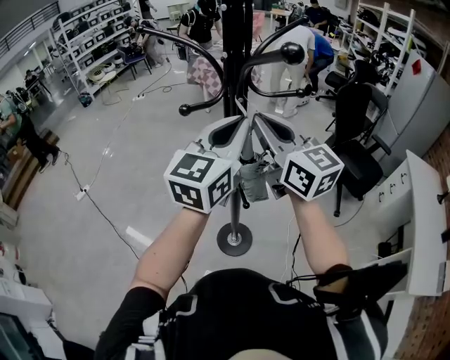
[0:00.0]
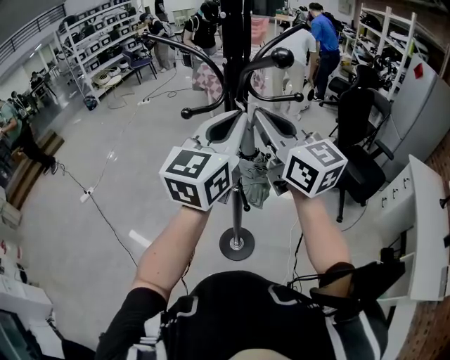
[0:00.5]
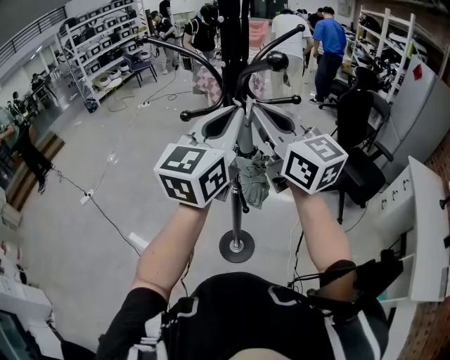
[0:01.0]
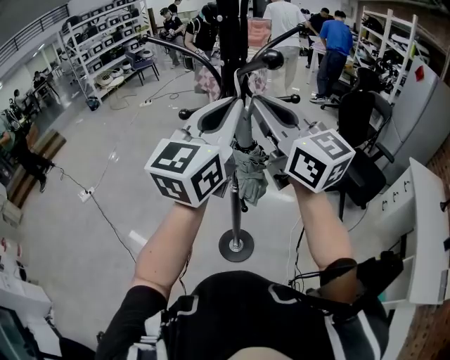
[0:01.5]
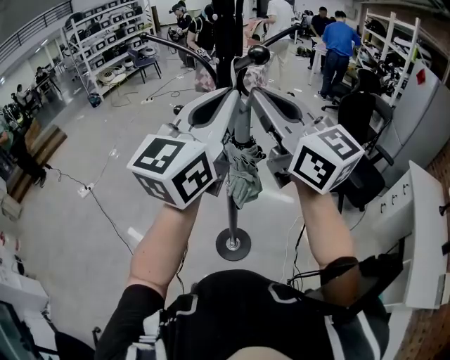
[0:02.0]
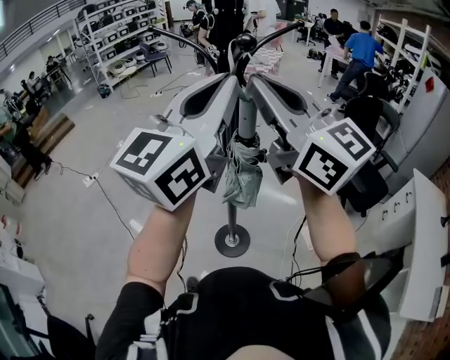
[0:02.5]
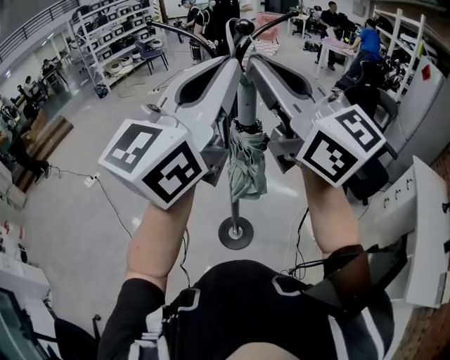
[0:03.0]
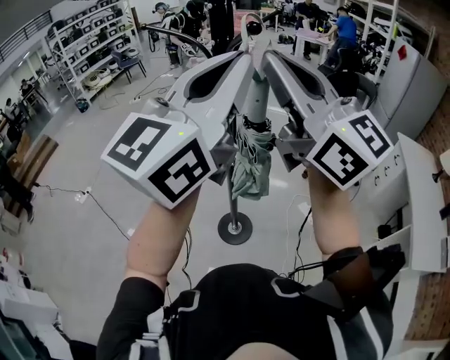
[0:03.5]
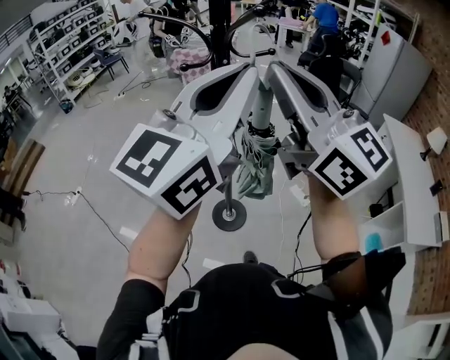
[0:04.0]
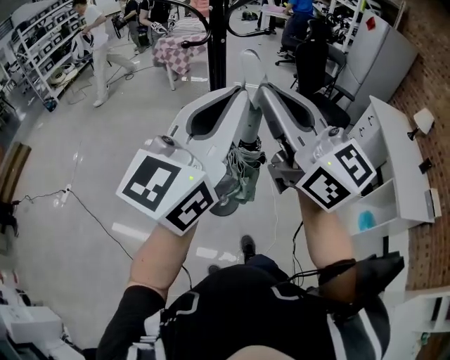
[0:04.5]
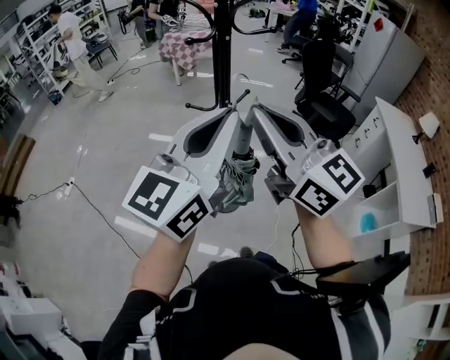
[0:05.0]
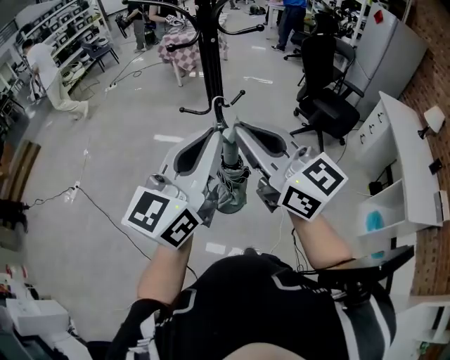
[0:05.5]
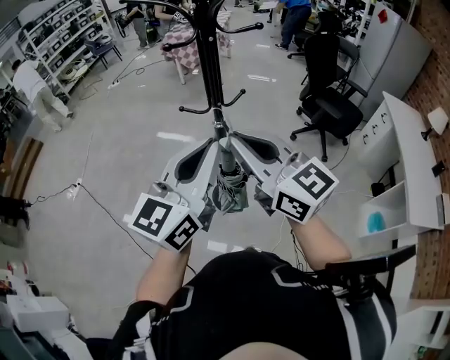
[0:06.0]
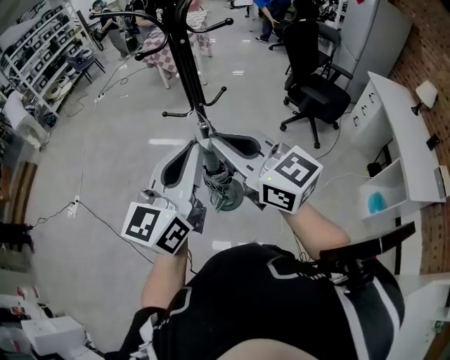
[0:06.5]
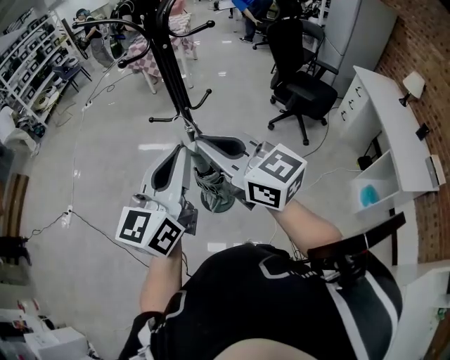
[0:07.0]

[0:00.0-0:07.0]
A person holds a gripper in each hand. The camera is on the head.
0:00.0 to 0:02.0: The right gripper moves upward and backward, about 10 cm; the left gripper moves upward, roughly 10 cm.
0:02.0 to 0:03.5: Both grippers travel together backward and upward, some 15 cm.
0:03.5 to 0:05.0: The two grippers go approximately 15 cm downward and backward.
0:05.0 to 0:07.0: The two grippers go about 10 cm downward.

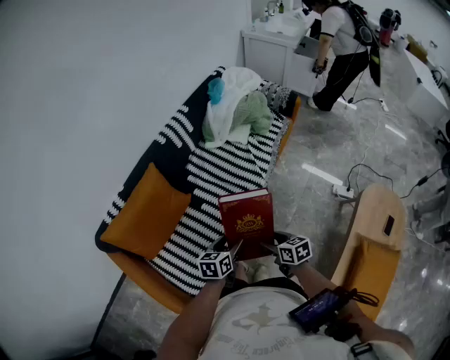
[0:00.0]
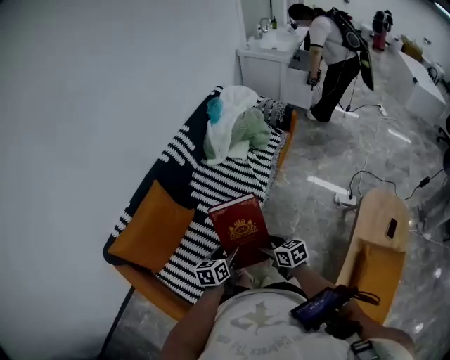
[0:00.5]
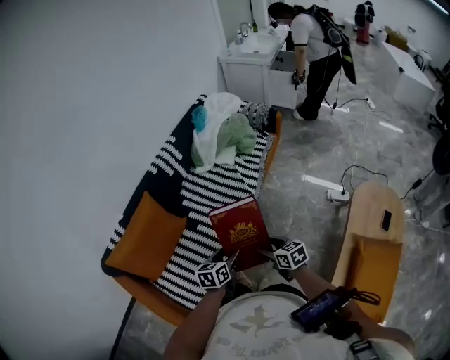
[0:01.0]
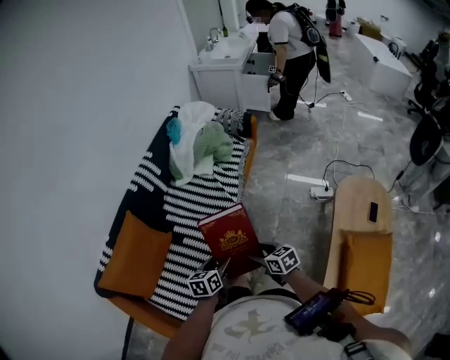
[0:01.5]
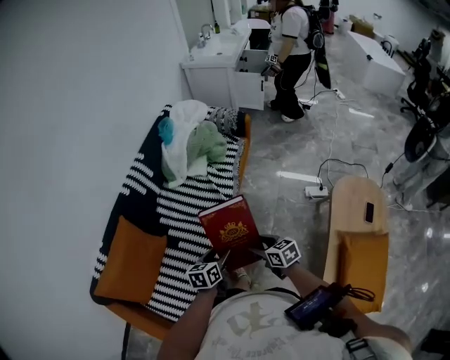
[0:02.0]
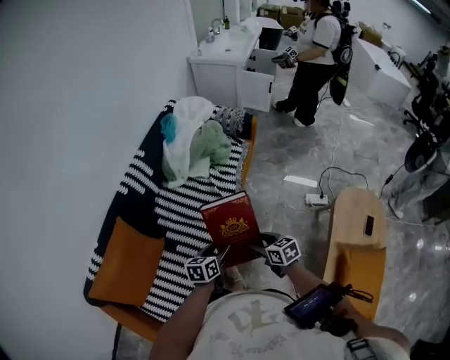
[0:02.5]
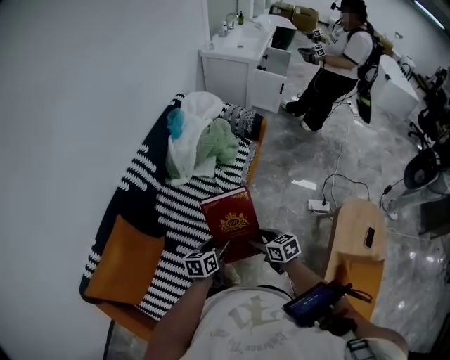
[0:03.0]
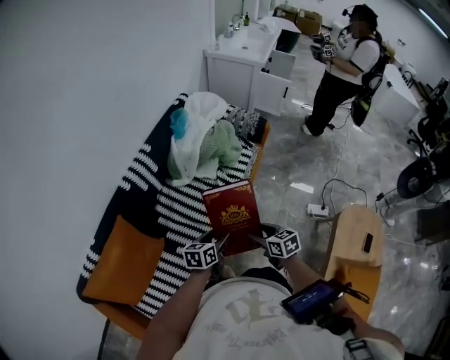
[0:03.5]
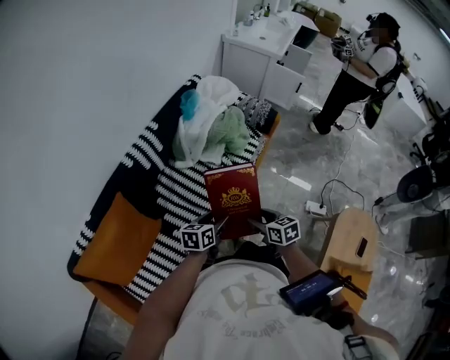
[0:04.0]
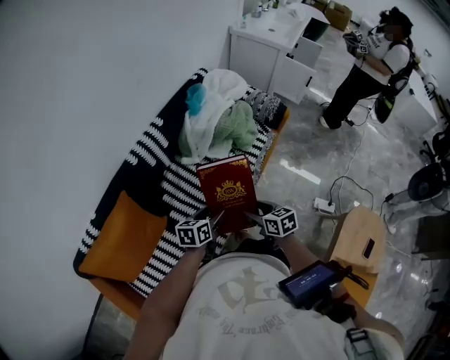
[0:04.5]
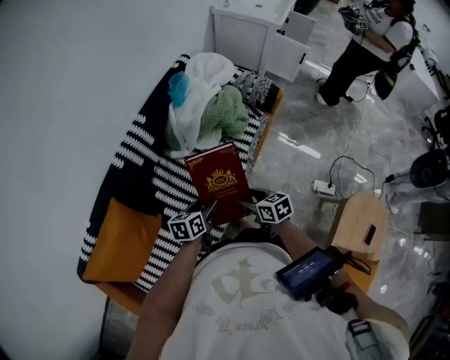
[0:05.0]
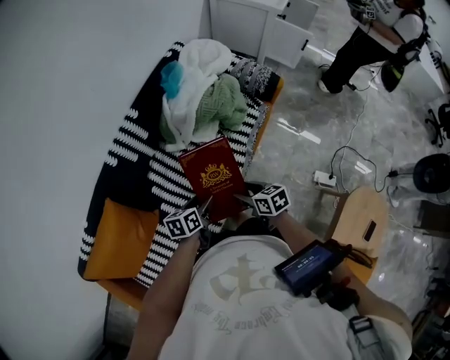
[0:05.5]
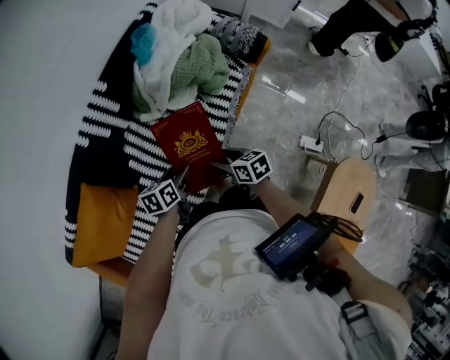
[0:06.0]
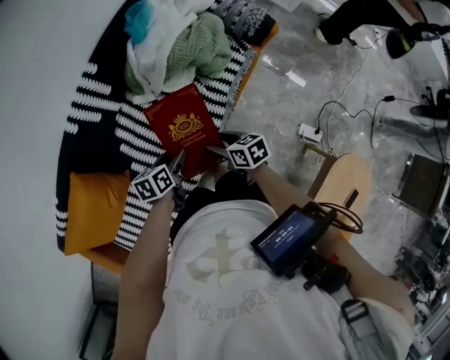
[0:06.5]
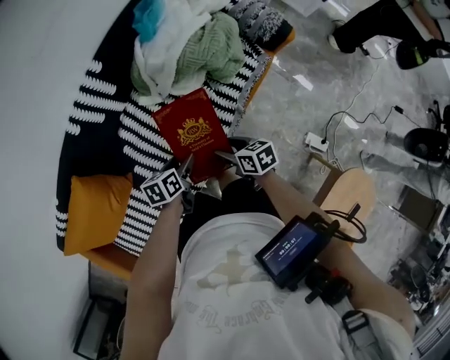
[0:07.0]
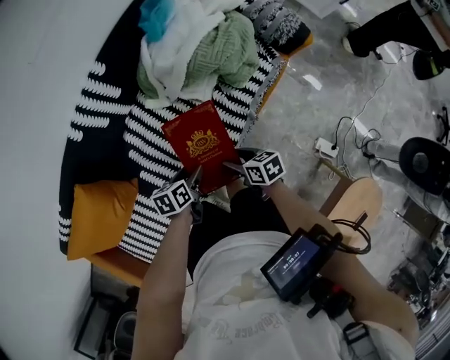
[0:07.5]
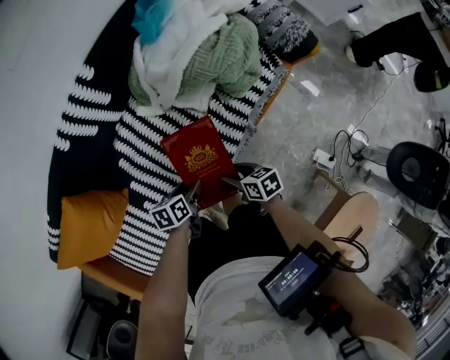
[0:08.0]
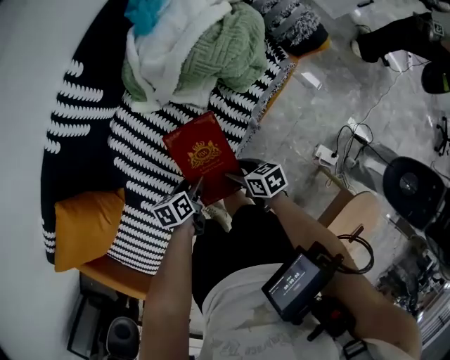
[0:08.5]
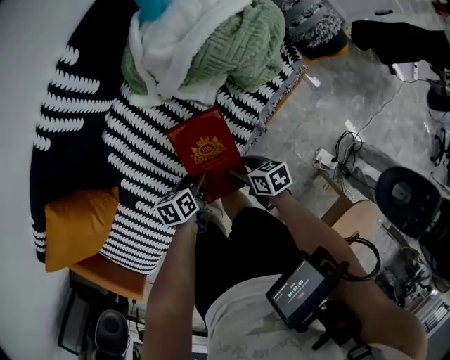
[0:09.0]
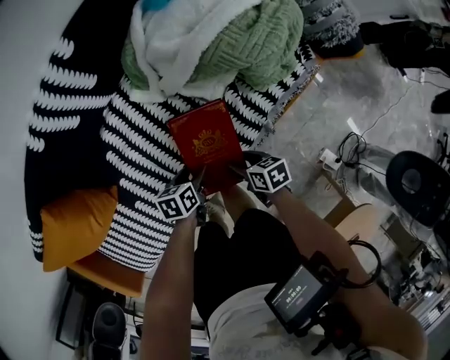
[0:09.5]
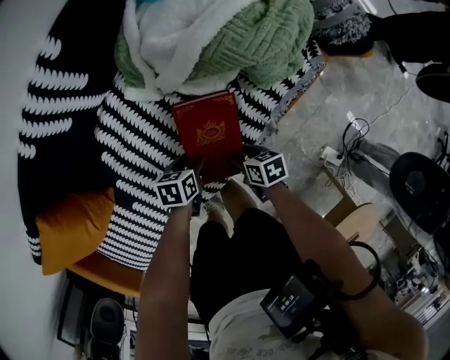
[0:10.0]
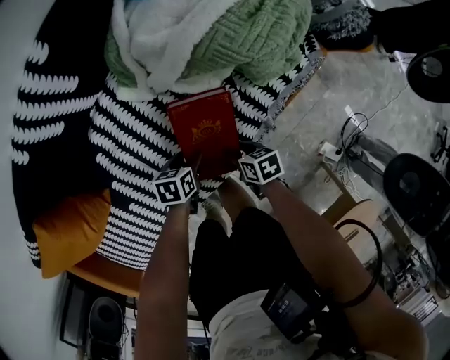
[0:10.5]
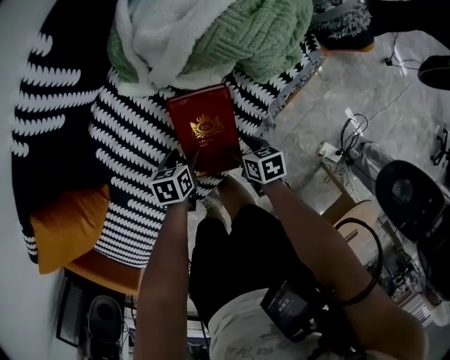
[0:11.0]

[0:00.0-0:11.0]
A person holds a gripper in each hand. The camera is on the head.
0:00.0 to 0:02.0: The two grippers go about 10 cm to the right.
0:02.0 to 0:03.5: The two grippers go some 15 cm forward.
0:03.5 to 0:05.5: The right gripper shifts approximately 15 cm forward; the left gripper goes about 15 cm forward and downward.
0:05.5 to 0:07.5: Both grippers move downward and forward, approximately 15 cm.
0:07.5 to 0:09.0: The two grippers go some 15 cm downward.
0:09.0 to 0:11.0: Both grippers travel together downward, some 10 cm.

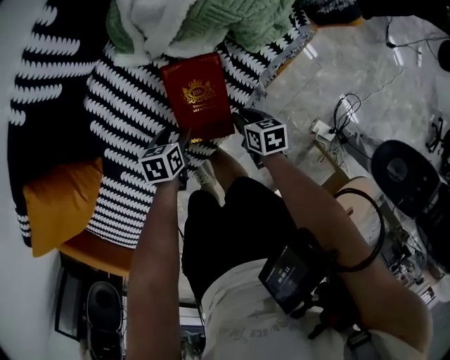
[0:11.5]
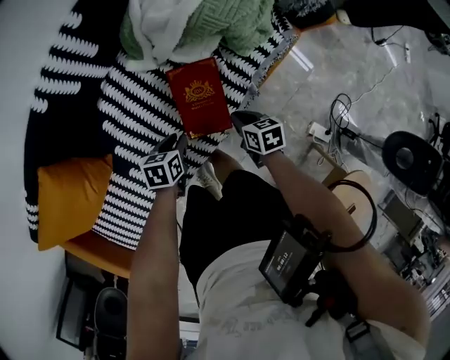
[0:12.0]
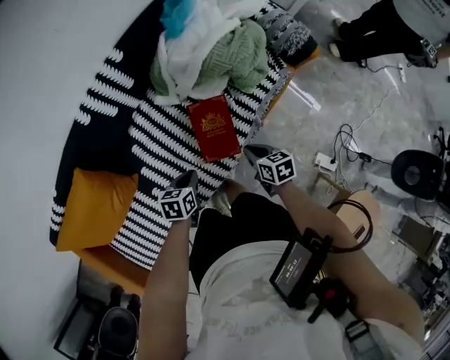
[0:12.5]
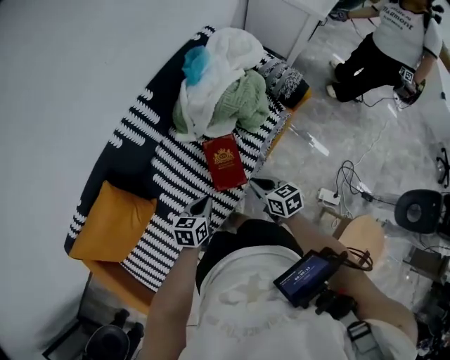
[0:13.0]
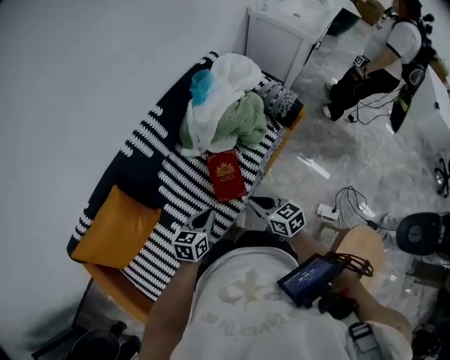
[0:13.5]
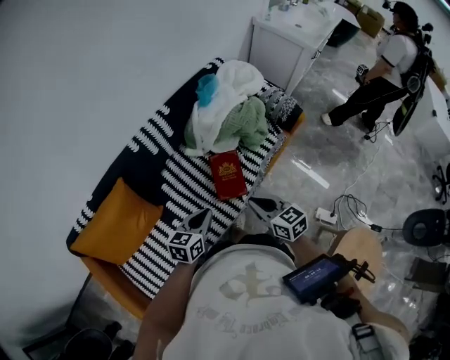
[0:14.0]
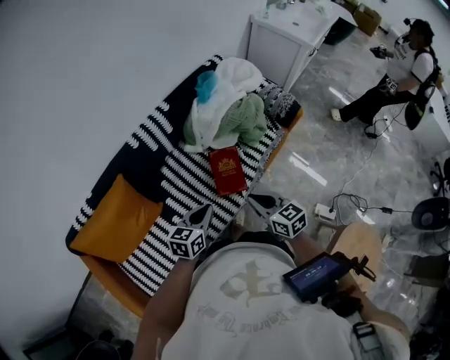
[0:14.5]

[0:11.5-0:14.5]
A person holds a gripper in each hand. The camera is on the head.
0:11.5 to 0:13.0: Both grippers travel together upward, approximately 30 cm. The right gripper swivels approximately 30 degrees, while the left gripper turns by about 30 degrees, and closes up.
0:13.0 to 0:14.5: The right gripper heads upward, backward and to the left, covering about 15 cm, while the left gripper travels upward and backward by approximately 15 cm.

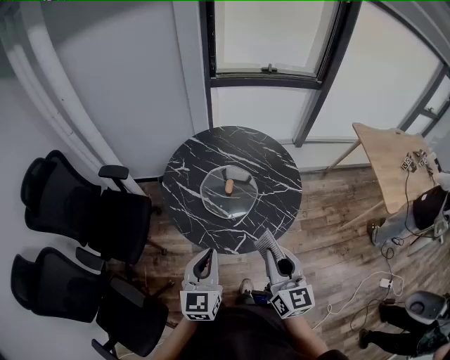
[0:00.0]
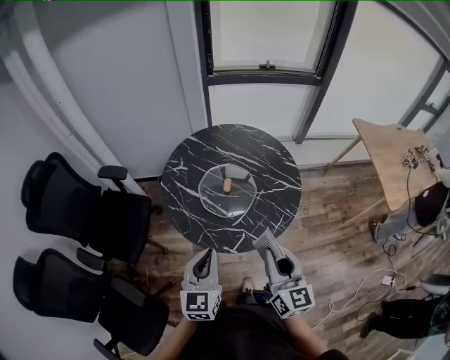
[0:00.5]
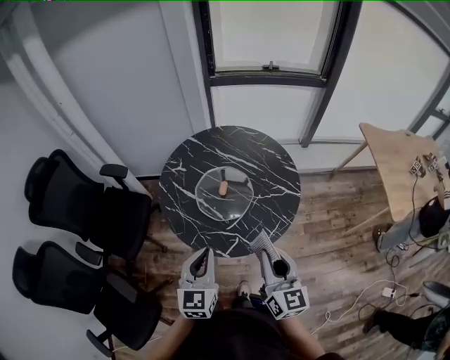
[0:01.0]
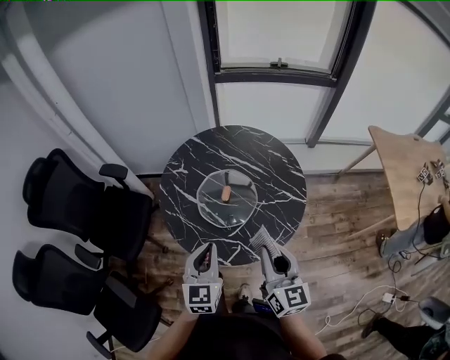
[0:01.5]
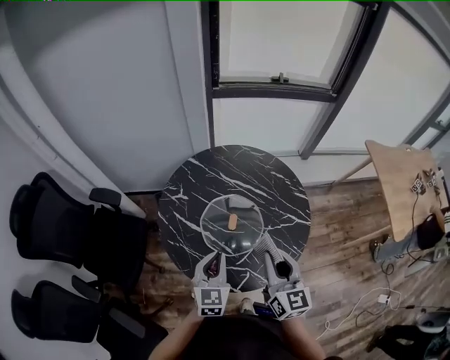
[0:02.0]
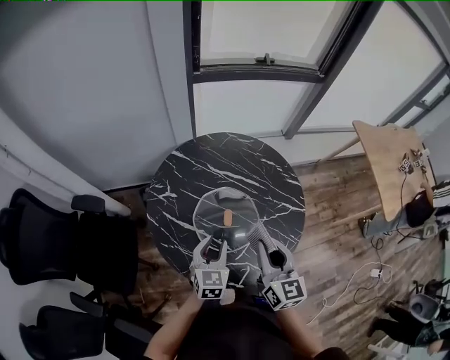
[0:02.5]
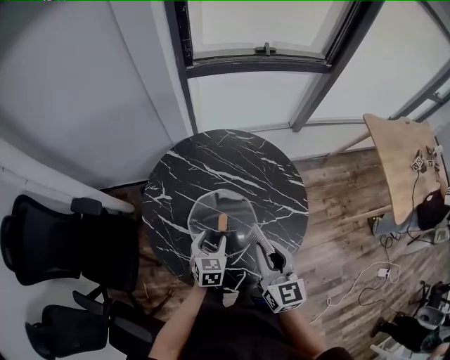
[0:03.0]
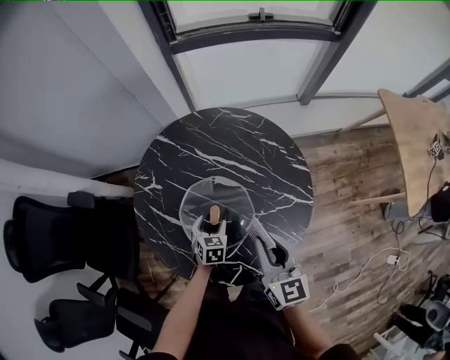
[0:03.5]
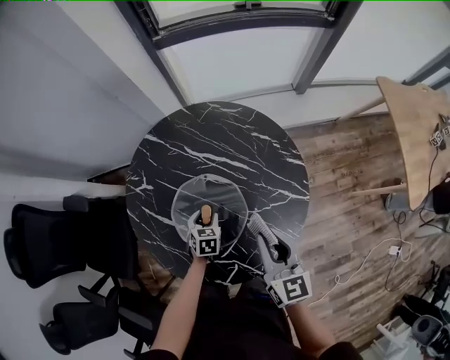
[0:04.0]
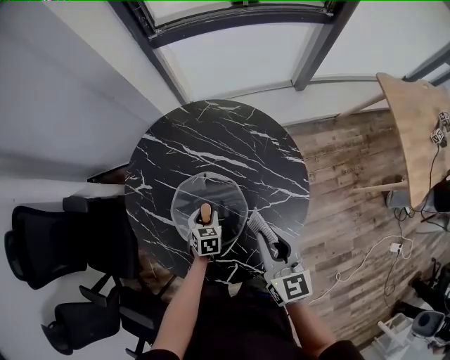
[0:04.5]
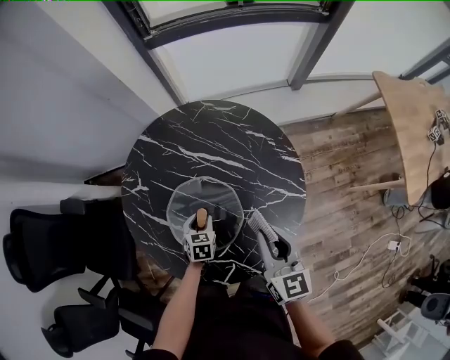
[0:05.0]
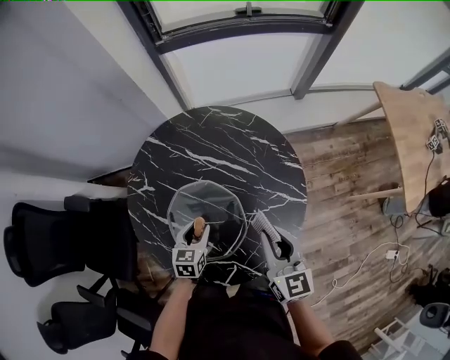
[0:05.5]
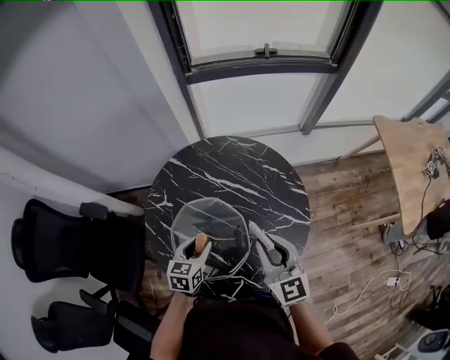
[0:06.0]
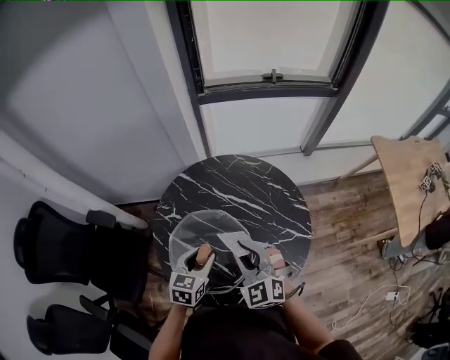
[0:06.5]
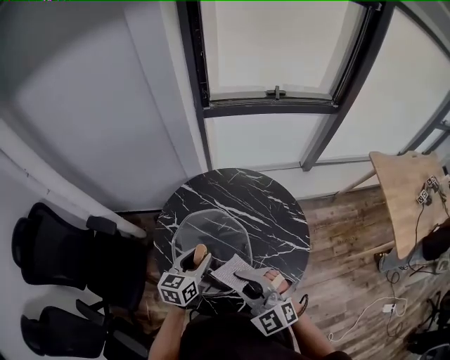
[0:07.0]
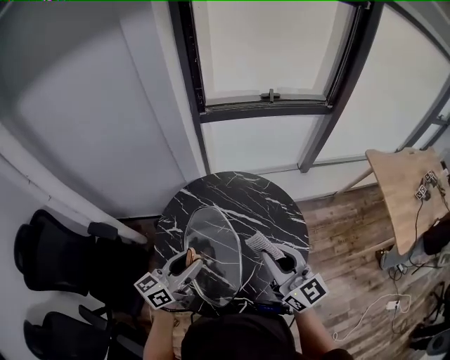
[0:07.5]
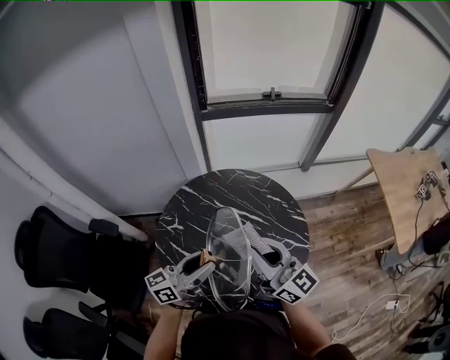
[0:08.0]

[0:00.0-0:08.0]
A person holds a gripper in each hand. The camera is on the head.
0:00.0 to 0:02.0: The right gripper shifts about 20 cm forward. Meanwhile the left gripper moves forward and downward, about 20 cm.
0:02.0 to 0:04.0: The left gripper shifts about 30 cm downward and forward, tips its fingers downward by approximately 40 degrees, and opens, while the right gripper is displaced forward, downward and to the right by approximately 20 cm.
0:04.0 to 0:06.0: The right gripper is displaced upward by some 5 cm. Meanwhile the left gripper is displaced upward by roughly 20 cm, and turns by roughly 20 degrees.
0:06.0 to 0:08.0: The right gripper is displaced upward and to the left by roughly 15 cm, and swivels approximately 30 degrees. The left gripper shifts some 20 cm upward, and tips its fingers upward by approximately 50 degrees.
